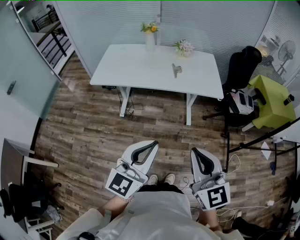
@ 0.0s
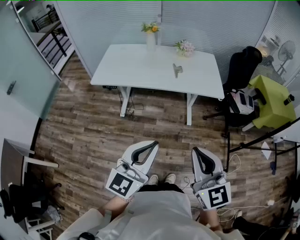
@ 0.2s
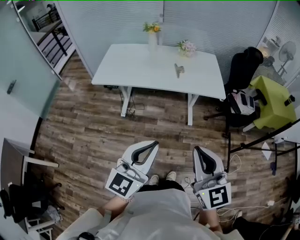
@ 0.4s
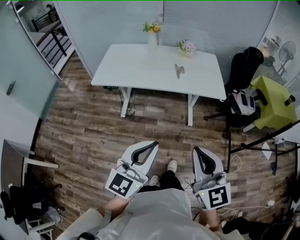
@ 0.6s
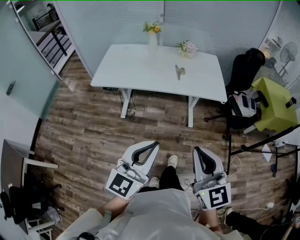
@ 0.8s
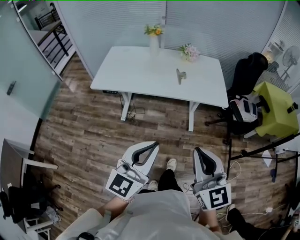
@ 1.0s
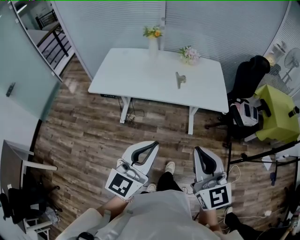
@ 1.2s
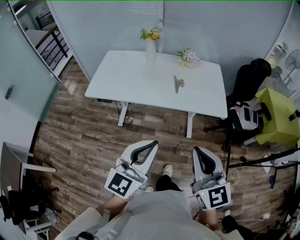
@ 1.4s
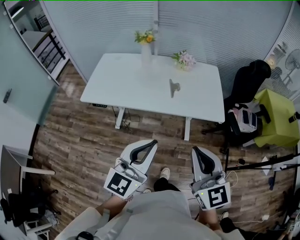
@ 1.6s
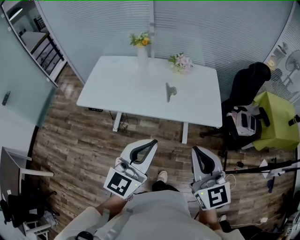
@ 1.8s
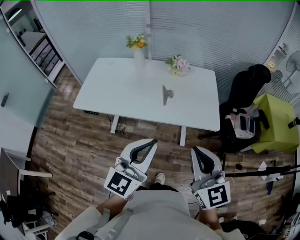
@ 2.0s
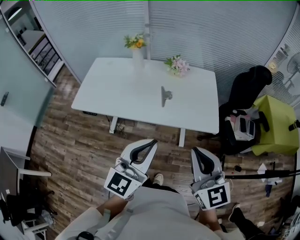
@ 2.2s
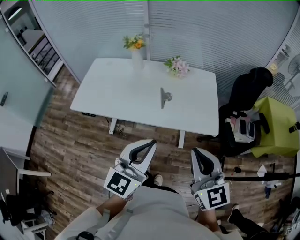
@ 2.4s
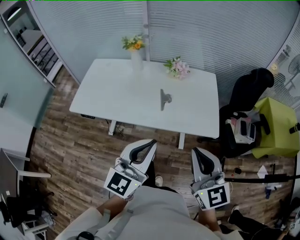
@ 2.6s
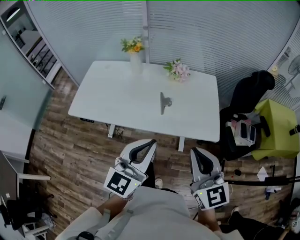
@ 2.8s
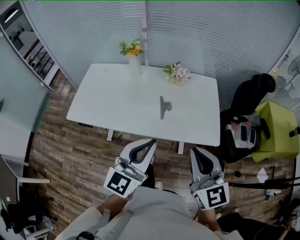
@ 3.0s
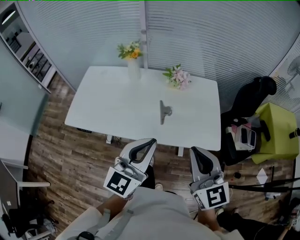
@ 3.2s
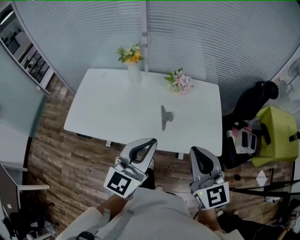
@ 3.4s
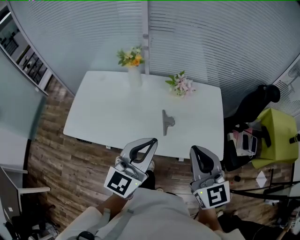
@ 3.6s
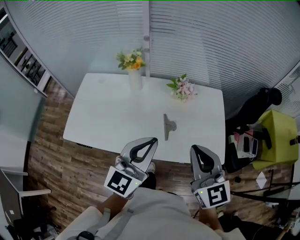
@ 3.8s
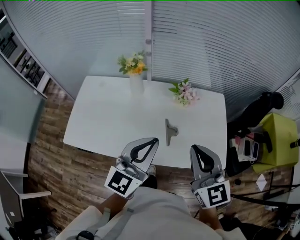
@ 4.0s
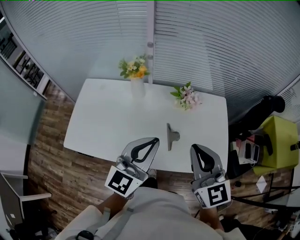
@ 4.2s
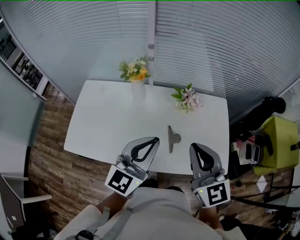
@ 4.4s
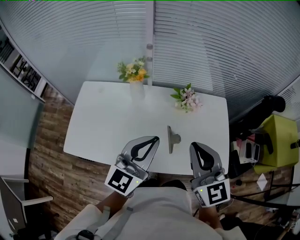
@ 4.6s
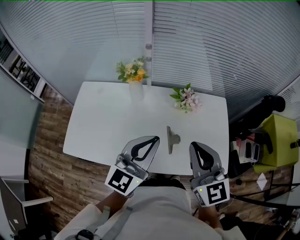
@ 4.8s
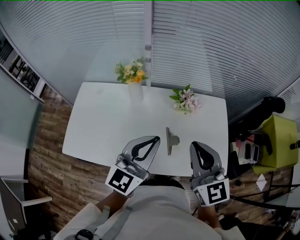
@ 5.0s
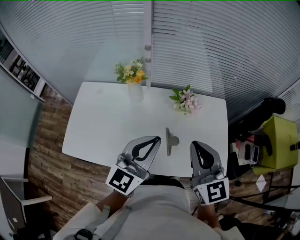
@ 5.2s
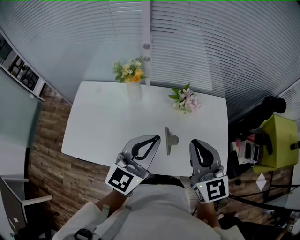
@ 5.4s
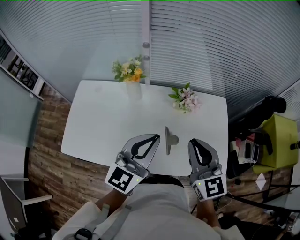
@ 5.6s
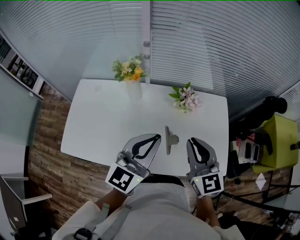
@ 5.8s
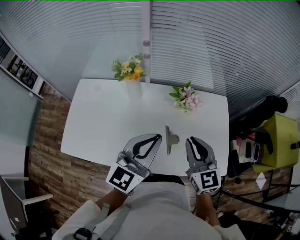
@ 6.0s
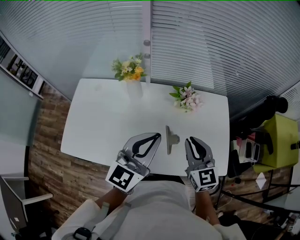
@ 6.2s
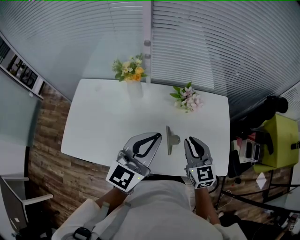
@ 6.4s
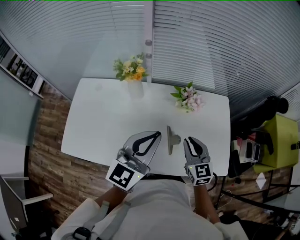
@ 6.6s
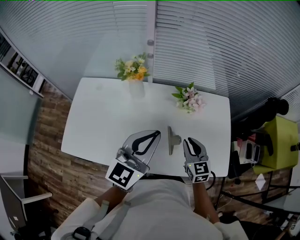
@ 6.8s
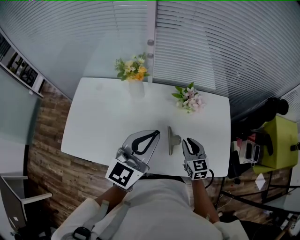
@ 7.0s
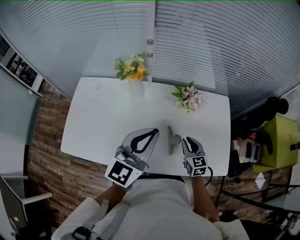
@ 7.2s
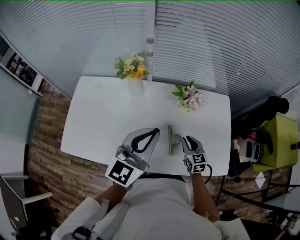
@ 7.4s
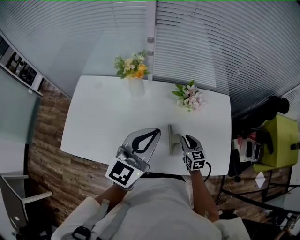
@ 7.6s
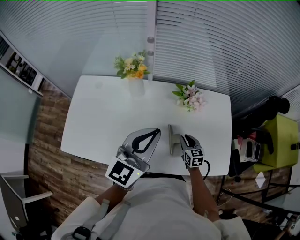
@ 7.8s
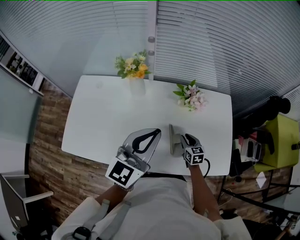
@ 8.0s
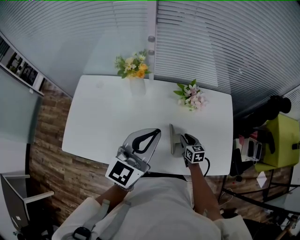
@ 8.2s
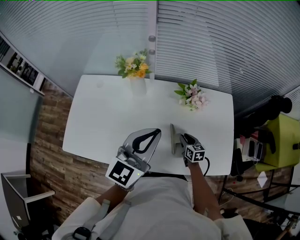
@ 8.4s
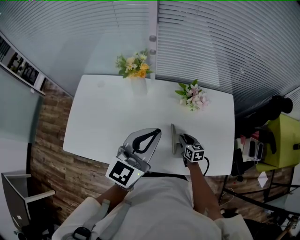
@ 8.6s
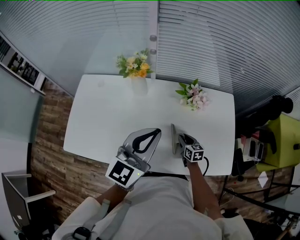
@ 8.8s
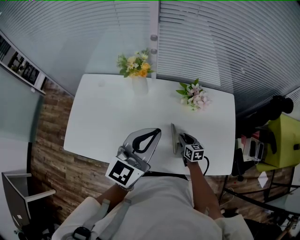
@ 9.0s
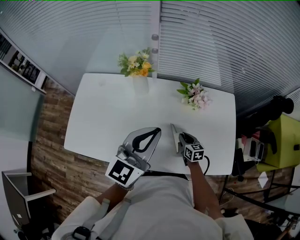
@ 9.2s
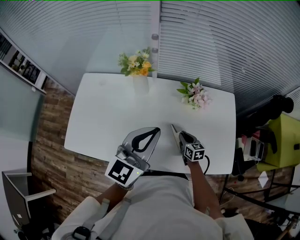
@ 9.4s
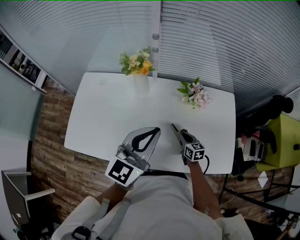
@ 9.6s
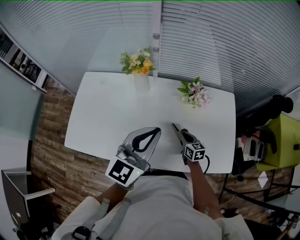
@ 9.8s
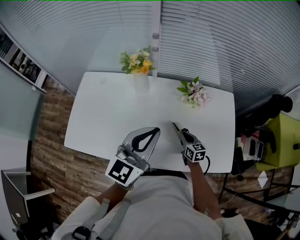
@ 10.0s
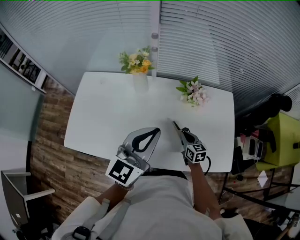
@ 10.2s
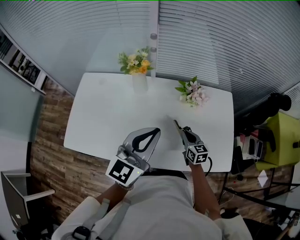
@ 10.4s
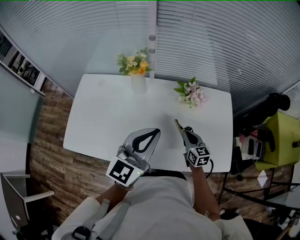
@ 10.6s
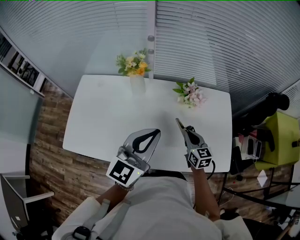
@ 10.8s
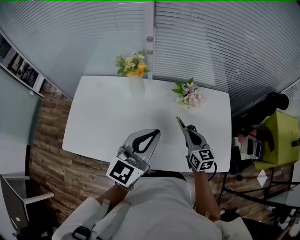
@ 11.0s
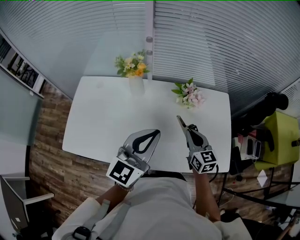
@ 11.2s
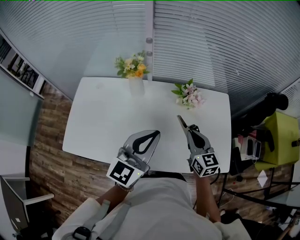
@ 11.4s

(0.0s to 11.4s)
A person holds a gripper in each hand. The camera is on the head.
0.0s - 1.4s: The grippers both shift forward by about 15 cm.
1.4s - 2.8s: The grippers both shift forward and to the right by some 25 cm.
2.8s - 4.2s: Both grippers travel together forward, approximately 25 cm.
4.2s - 5.6s: Both grippers move forward, some 5 cm.
5.6s - 7.2s: The right gripper goes approximately 25 cm downward, and changes its angle by some 20 degrees.
7.2s - 8.6s: The right gripper goes approximately 10 cm downward, and turns by about 20 degrees.
8.6s - 10.0s: The right gripper closes.
10.0s - 11.4s: The right gripper is displaced upward by roughly 20 cm.

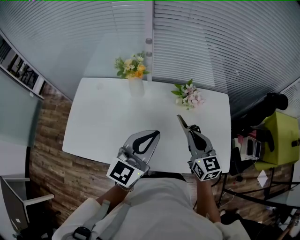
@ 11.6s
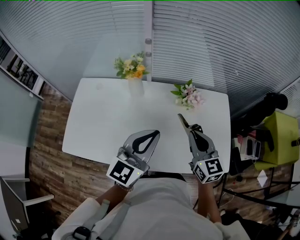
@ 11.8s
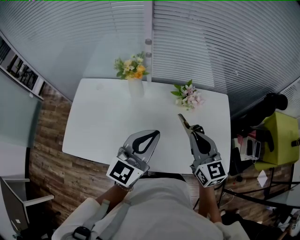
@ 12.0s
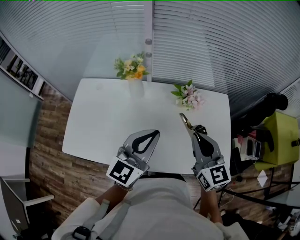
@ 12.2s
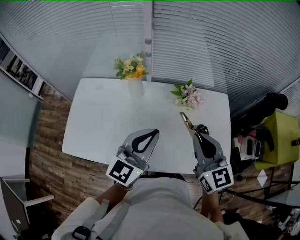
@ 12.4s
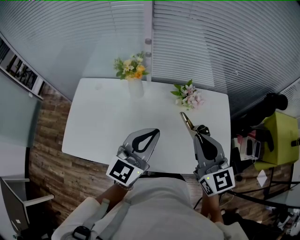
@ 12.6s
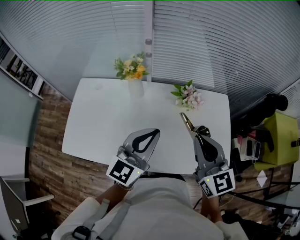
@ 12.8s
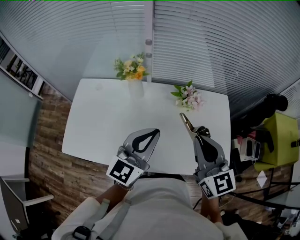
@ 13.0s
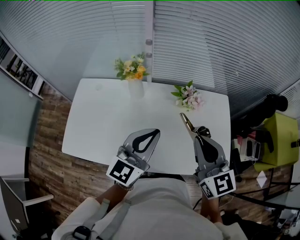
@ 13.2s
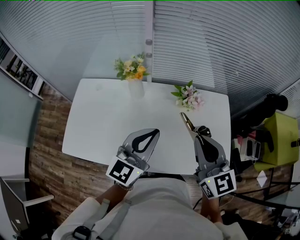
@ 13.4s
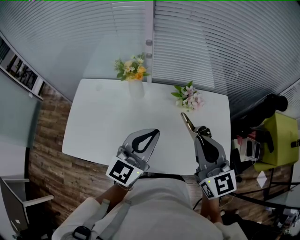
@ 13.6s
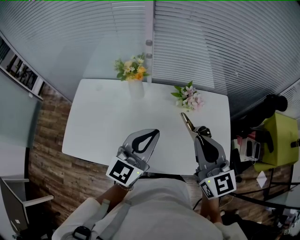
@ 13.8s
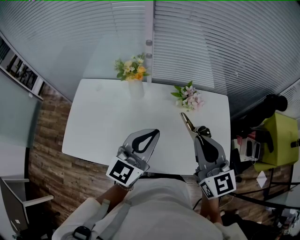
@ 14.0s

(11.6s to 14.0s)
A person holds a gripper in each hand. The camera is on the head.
11.6s - 12.8s: The right gripper moves upward, roughly 10 cm.
12.8s - 14.0s: The two grippers keep their place.

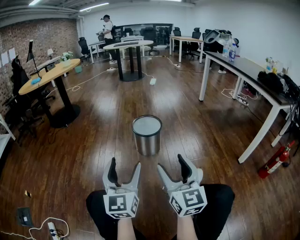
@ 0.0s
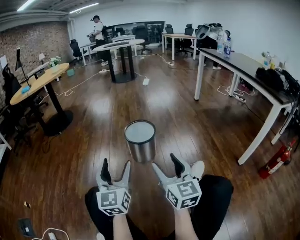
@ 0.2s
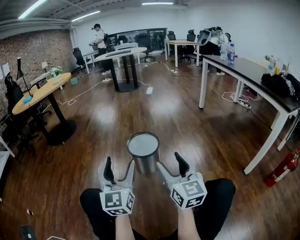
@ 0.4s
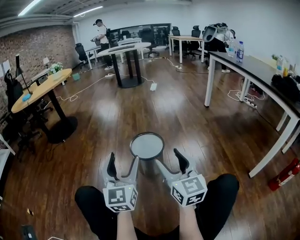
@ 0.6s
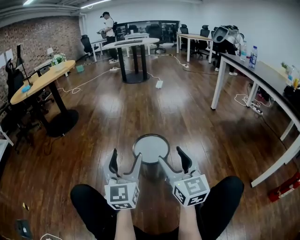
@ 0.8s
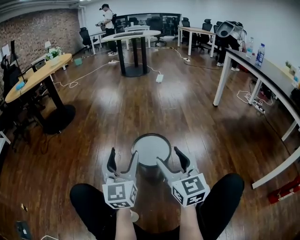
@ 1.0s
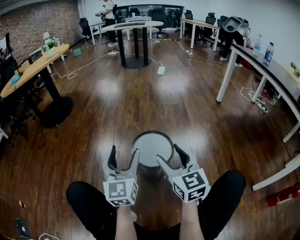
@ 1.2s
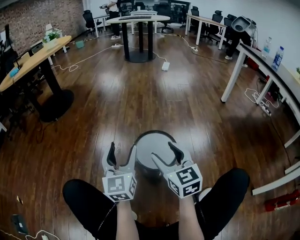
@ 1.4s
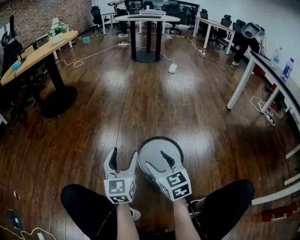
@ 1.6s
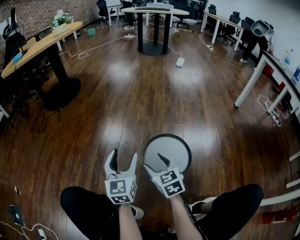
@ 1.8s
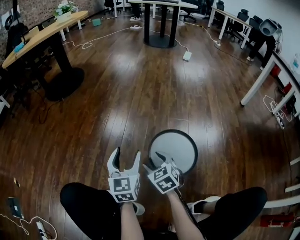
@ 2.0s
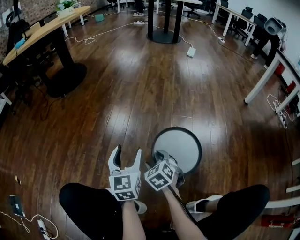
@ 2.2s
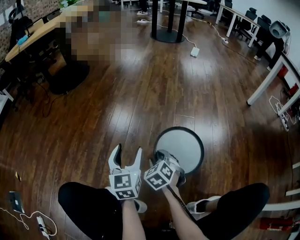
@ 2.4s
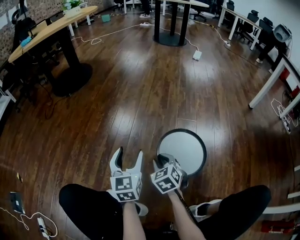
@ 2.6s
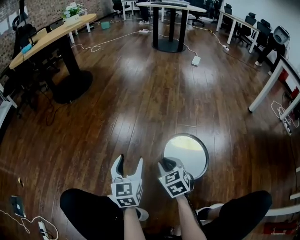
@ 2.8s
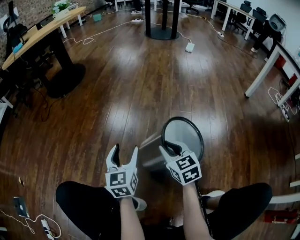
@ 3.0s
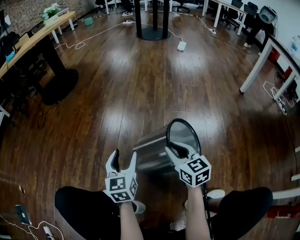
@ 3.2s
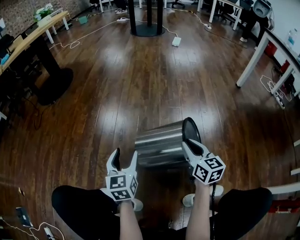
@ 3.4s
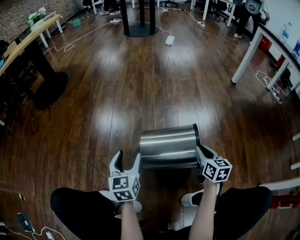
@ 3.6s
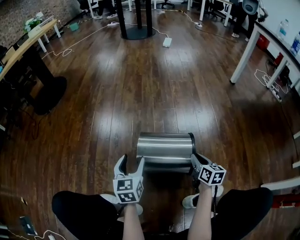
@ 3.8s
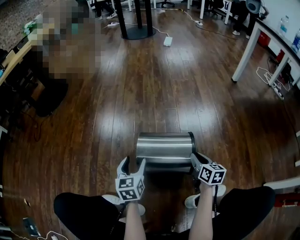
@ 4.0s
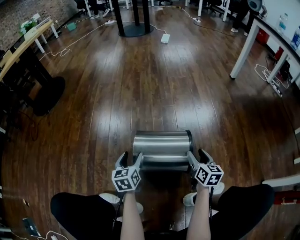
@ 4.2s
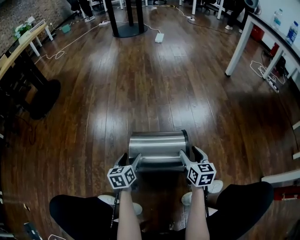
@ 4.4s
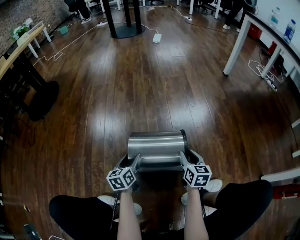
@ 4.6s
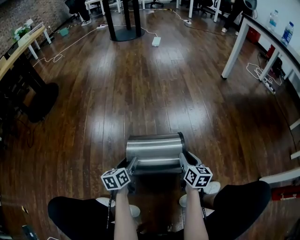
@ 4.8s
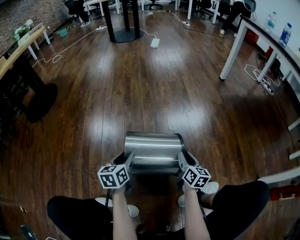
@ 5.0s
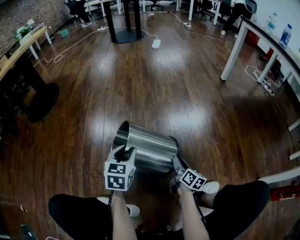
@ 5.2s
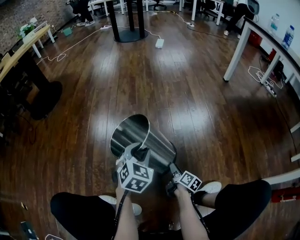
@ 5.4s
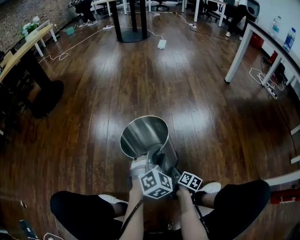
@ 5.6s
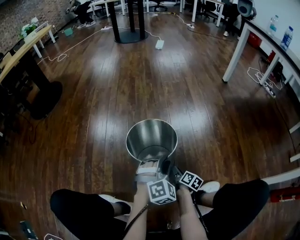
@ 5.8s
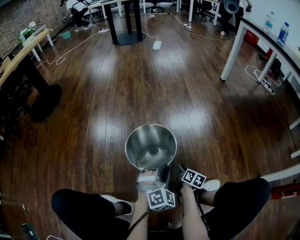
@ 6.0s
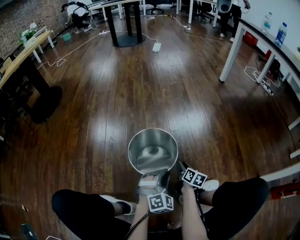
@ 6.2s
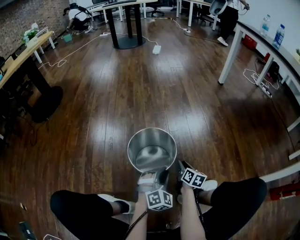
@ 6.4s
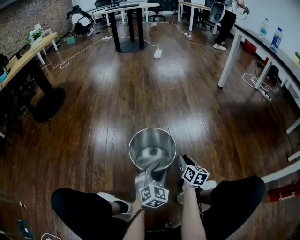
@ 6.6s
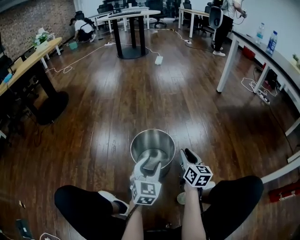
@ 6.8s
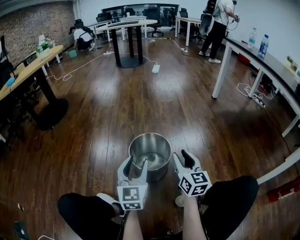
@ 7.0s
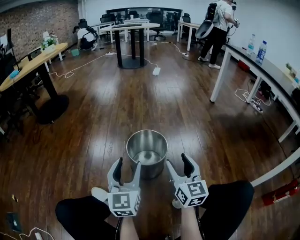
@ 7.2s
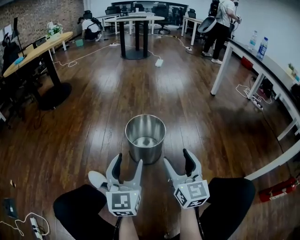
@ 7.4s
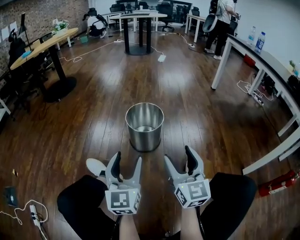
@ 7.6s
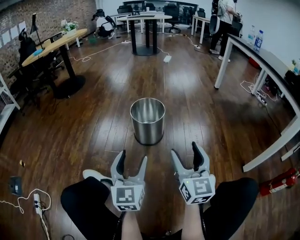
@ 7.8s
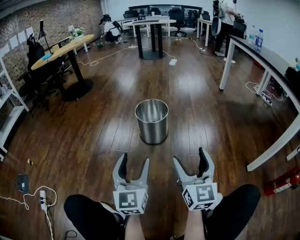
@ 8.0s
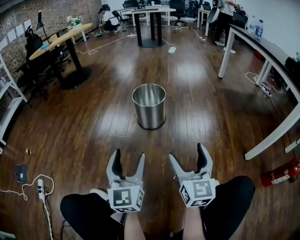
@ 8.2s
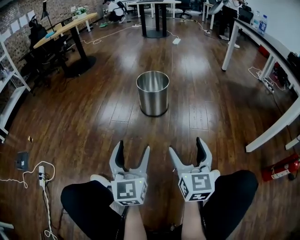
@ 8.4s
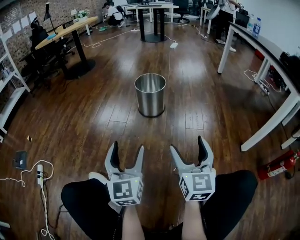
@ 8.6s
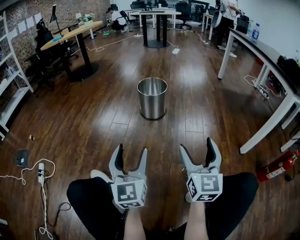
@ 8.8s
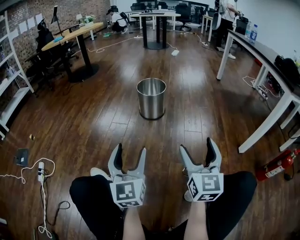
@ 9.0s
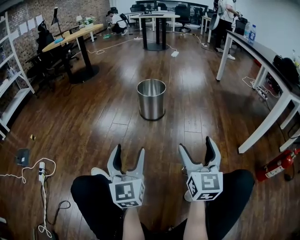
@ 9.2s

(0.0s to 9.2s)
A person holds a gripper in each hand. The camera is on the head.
0.0s - 1.6s: The two grippers travel together, forward, some 50 cm. The right gripper turns by about 30 degrees.
1.6s - 3.0s: The left gripper goes some 10 cm downward; the right gripper heads downward and forward, covering approximately 10 cm, and closes.
3.0s - 4.6s: The left gripper shifts roughly 15 cm downward, and changes its angle by approximately 30 degrees. The right gripper moves approximately 25 cm, and turns by about 40 degrees.
4.6s - 6.2s: The right gripper heads downward and backward, covering roughly 10 cm, and rotates roughly 30 degrees. Meanwhile the left gripper shifts approximately 20 cm to the right and backward, rolls clockwise, seen from behind, by some 90 degrees, and closes.
6.2s - 7.6s: The grippers both shift upward and backward by approximately 40 cm. The right gripper tips its fingers upward by about 40 degrees, and opens. Meanwhile the left gripper points its fingers some 40 degrees further upward, and opens up.
7.6s - 9.2s: The two grippers go roughly 30 cm backward.

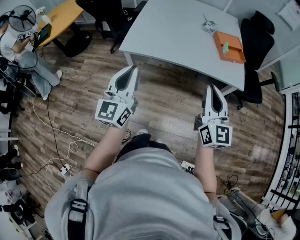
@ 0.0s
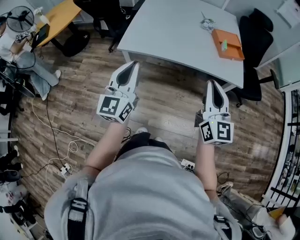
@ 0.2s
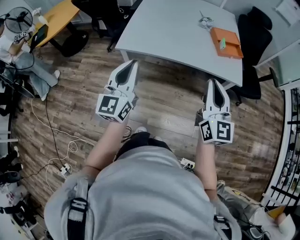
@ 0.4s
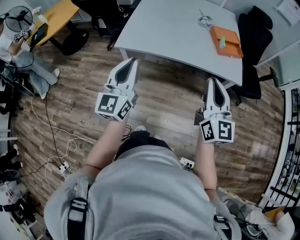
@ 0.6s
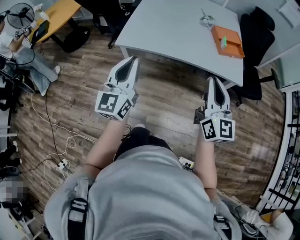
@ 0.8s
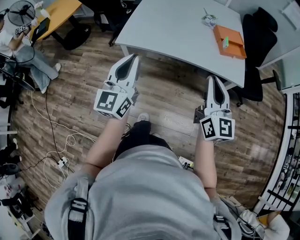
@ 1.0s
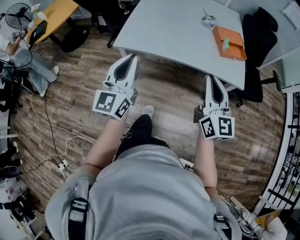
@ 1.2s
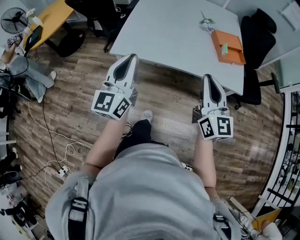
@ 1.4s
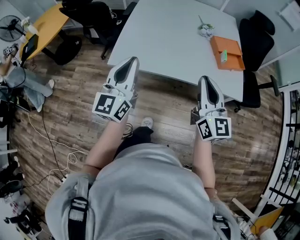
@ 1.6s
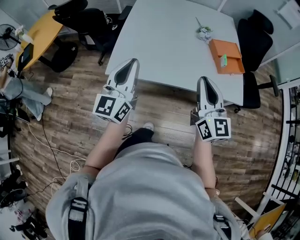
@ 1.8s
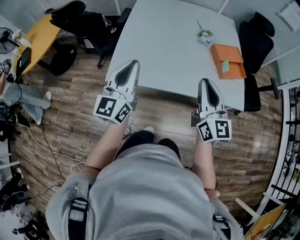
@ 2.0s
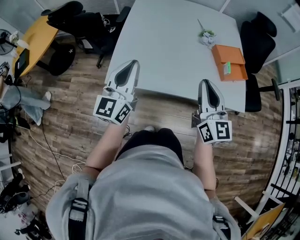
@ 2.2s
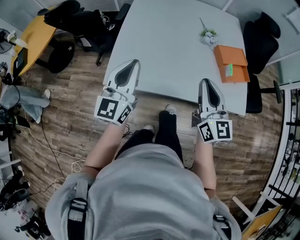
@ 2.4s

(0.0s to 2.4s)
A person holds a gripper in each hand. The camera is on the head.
0.0s - 1.2s: Both grippers move forward, some 5 cm.
1.2s - 2.4s: Both grippers travel together forward, approximately 25 cm.
